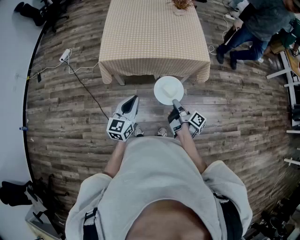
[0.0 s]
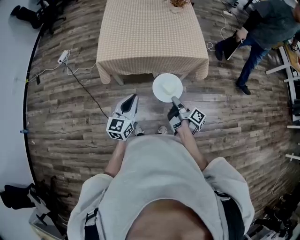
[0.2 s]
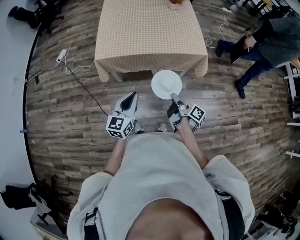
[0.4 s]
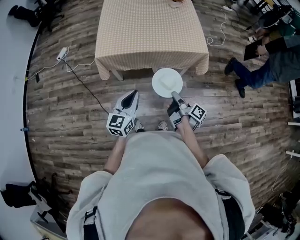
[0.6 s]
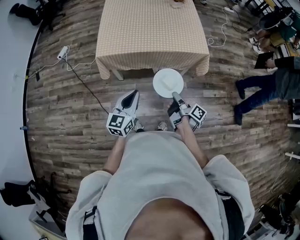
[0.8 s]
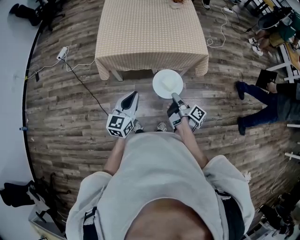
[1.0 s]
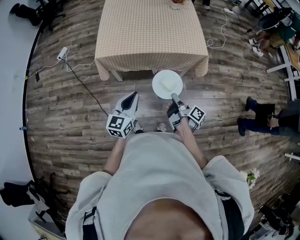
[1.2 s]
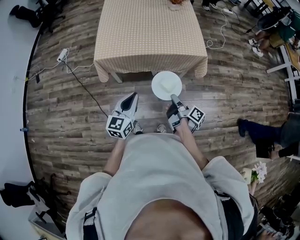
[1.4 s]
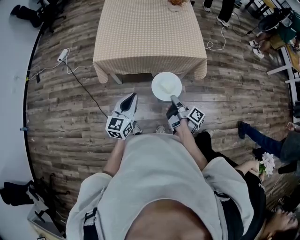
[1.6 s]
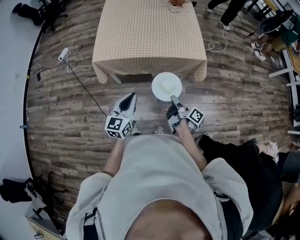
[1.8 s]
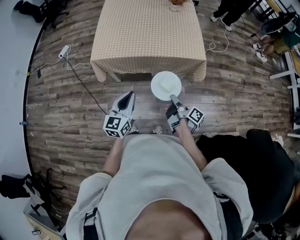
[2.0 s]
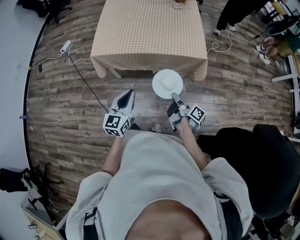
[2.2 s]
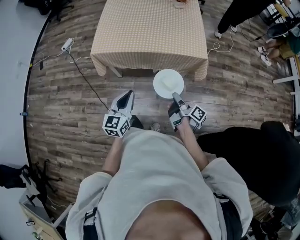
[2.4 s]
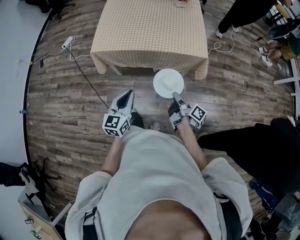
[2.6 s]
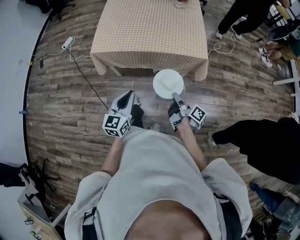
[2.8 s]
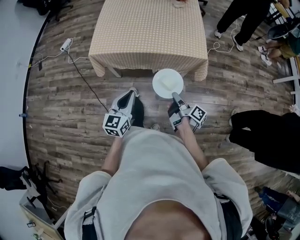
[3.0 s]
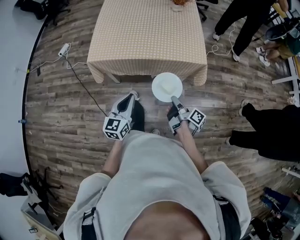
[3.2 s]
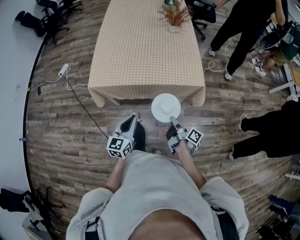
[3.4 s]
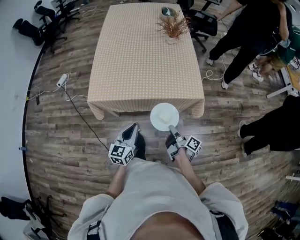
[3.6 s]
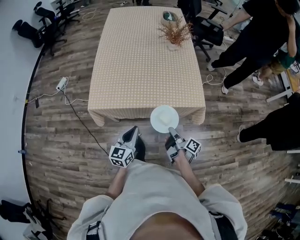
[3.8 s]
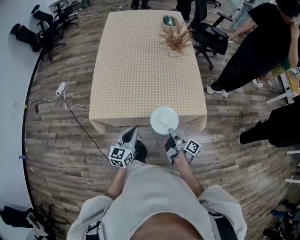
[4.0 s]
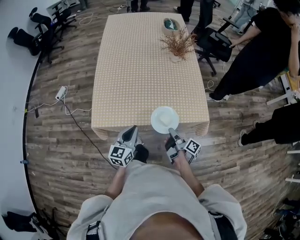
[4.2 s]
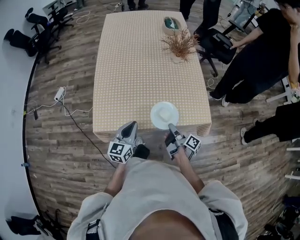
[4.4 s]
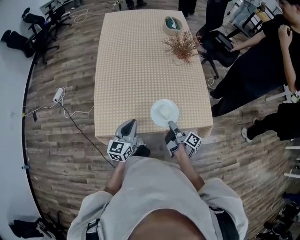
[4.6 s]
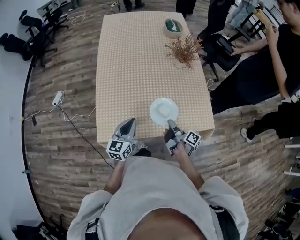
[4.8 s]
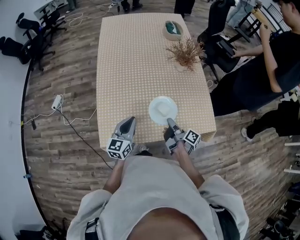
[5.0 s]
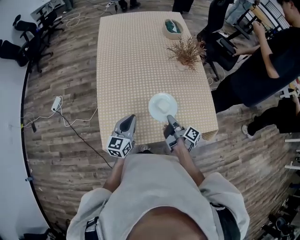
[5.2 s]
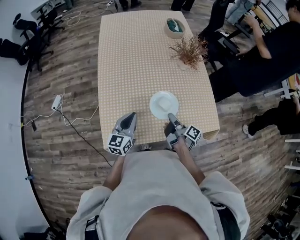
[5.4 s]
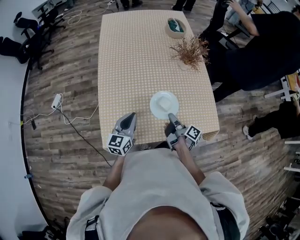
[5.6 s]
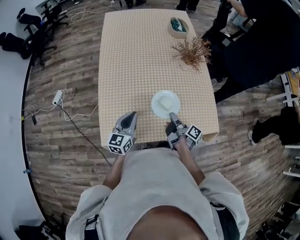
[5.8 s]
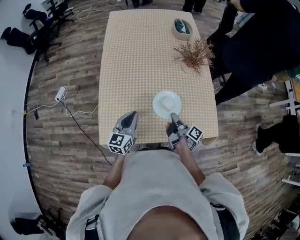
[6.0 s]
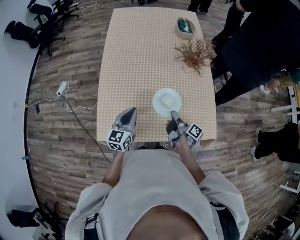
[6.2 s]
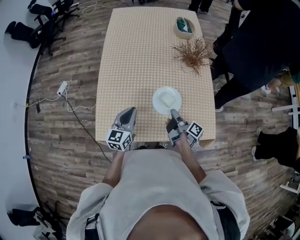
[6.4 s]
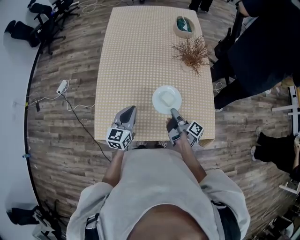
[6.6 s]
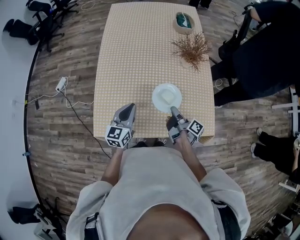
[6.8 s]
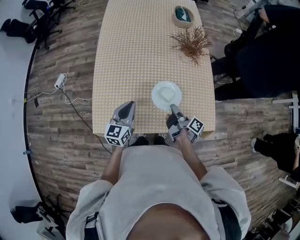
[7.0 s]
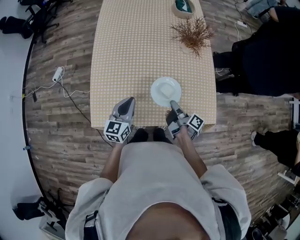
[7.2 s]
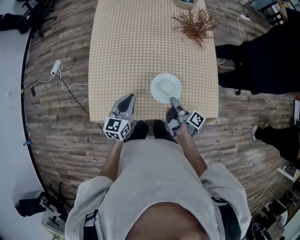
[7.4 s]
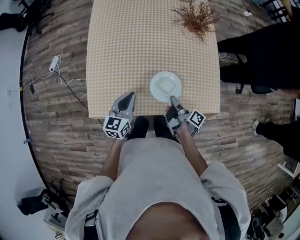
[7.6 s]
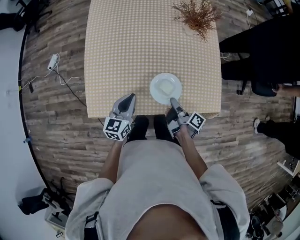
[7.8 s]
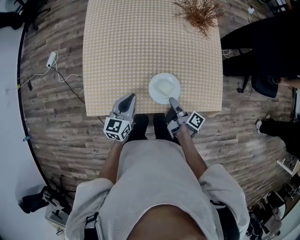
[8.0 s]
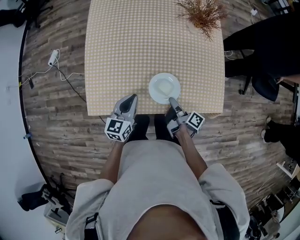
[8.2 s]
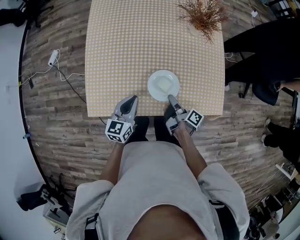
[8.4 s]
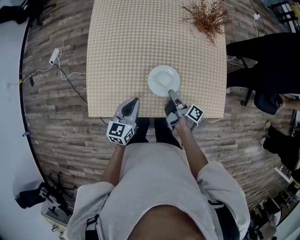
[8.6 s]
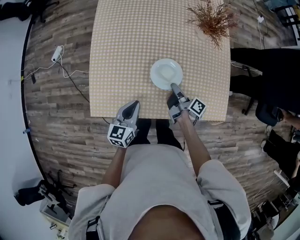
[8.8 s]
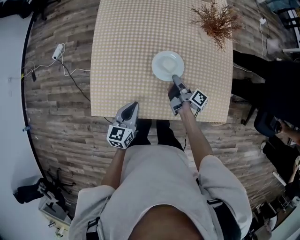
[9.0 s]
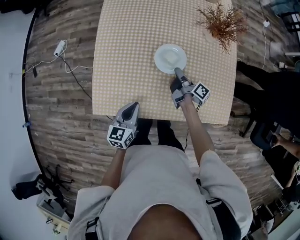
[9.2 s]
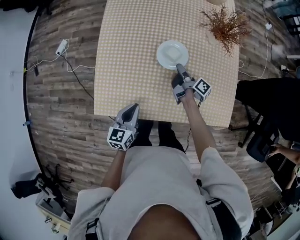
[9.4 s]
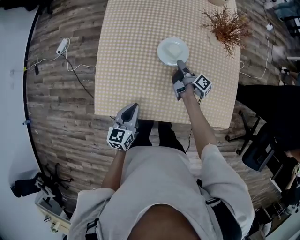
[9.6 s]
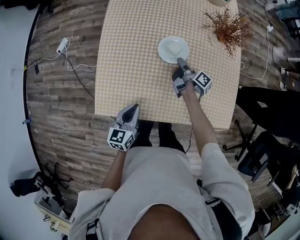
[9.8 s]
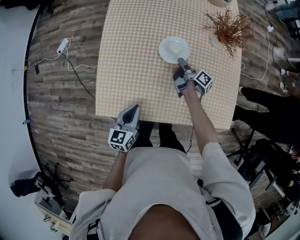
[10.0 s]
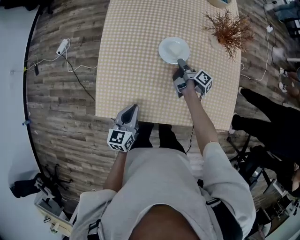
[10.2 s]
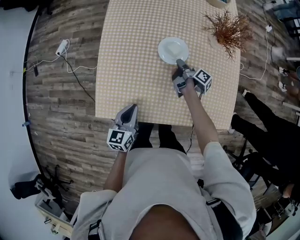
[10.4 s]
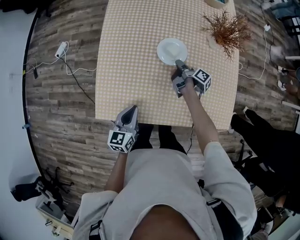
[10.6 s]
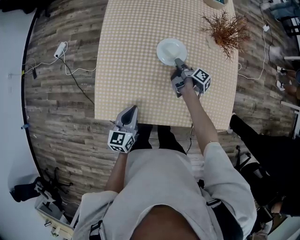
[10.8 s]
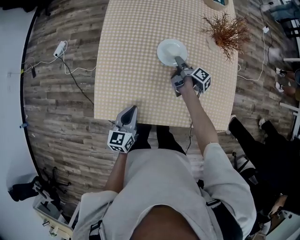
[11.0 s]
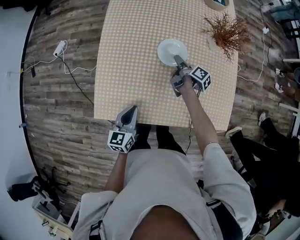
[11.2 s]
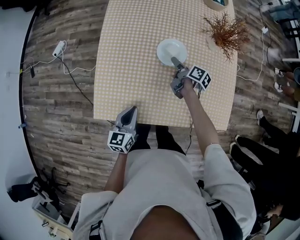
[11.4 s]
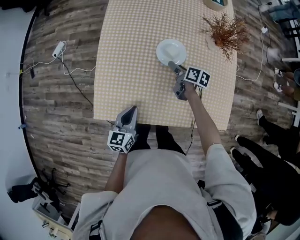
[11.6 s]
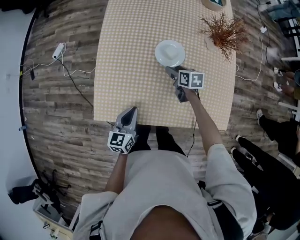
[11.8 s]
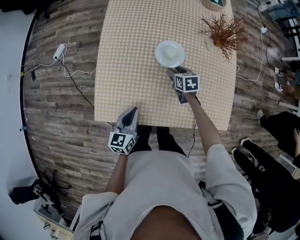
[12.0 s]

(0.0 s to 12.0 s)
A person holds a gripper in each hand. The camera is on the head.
3.0 s - 4.4 s: The left gripper shifts by some 30 cm.
4.4 s - 6.0 s: The left gripper ends up about 15 cm from where it was.
6.0 s - 7.6 s: The left gripper goes roughly 5 cm downward.
7.6 s - 9.0 s: The left gripper ends up some 5 cm from where it was.

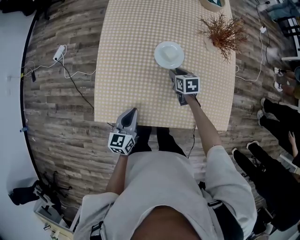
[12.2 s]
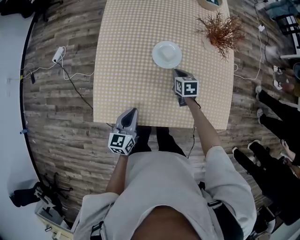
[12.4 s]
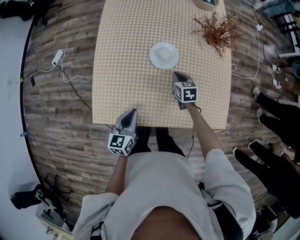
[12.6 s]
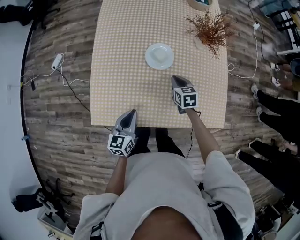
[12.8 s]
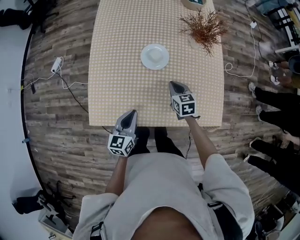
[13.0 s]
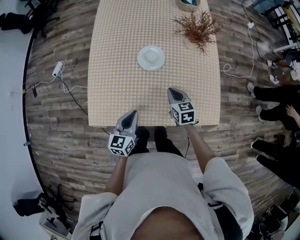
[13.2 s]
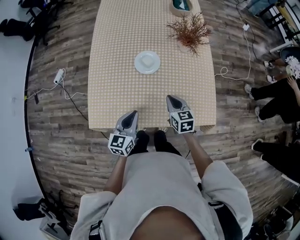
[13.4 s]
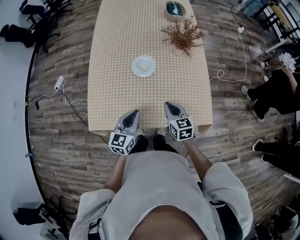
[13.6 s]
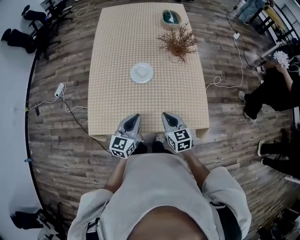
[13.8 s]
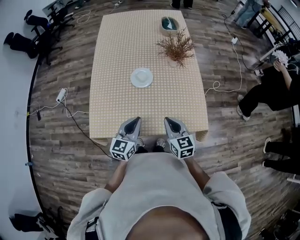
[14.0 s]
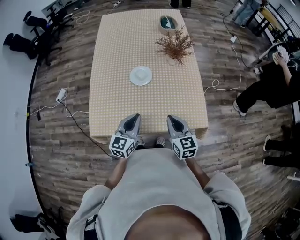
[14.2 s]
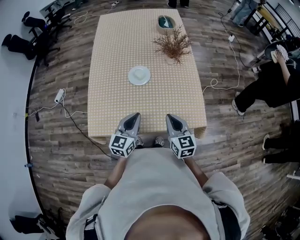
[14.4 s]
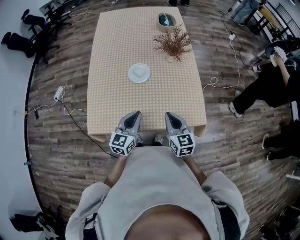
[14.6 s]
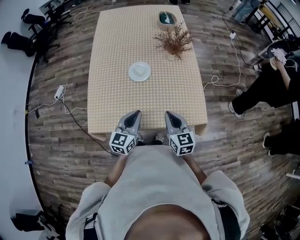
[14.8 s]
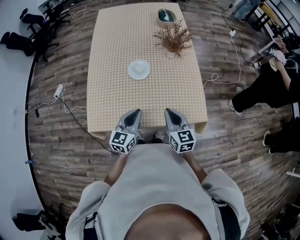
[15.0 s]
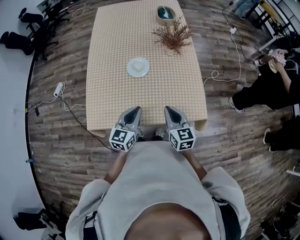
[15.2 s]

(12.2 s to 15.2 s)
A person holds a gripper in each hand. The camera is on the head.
12.2 s - 13.8 s: The left gripper changes place by some 15 cm.

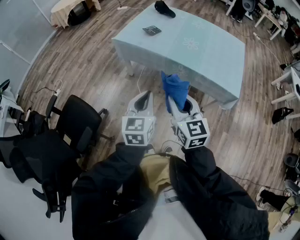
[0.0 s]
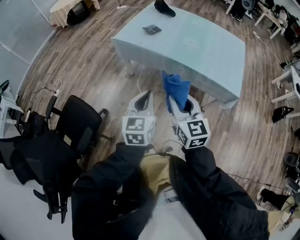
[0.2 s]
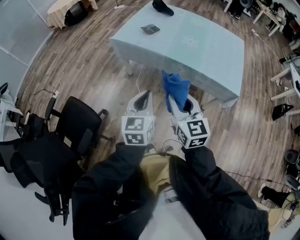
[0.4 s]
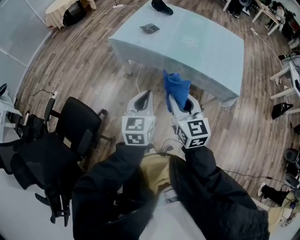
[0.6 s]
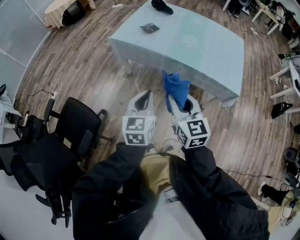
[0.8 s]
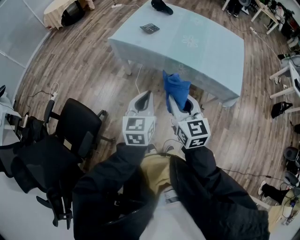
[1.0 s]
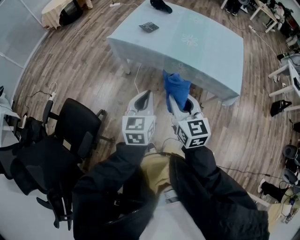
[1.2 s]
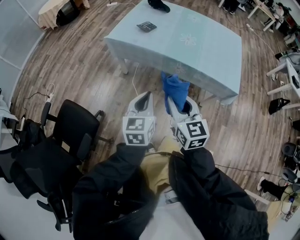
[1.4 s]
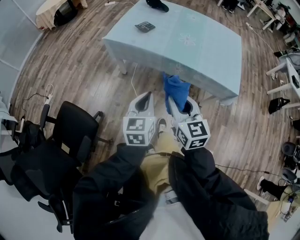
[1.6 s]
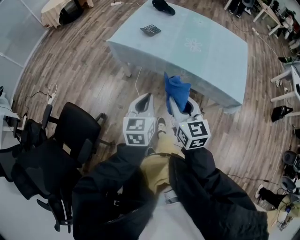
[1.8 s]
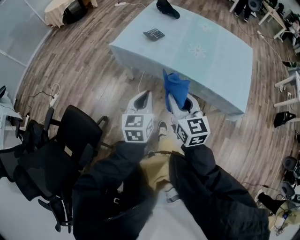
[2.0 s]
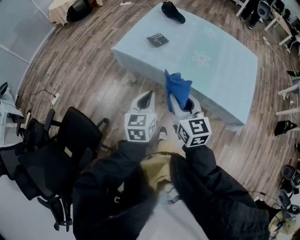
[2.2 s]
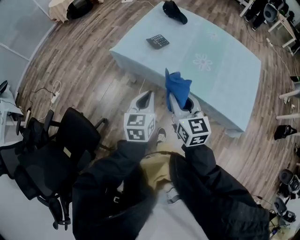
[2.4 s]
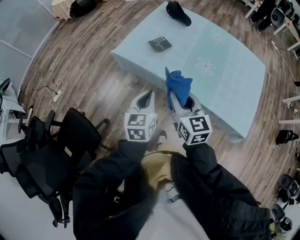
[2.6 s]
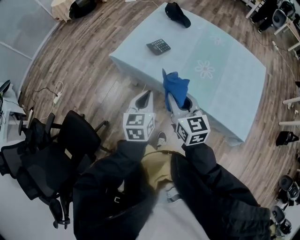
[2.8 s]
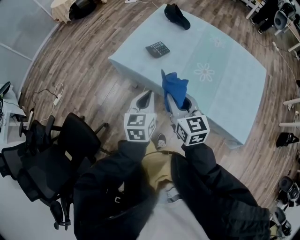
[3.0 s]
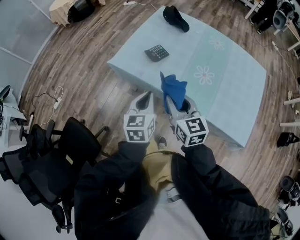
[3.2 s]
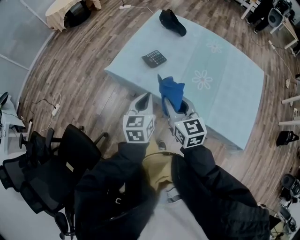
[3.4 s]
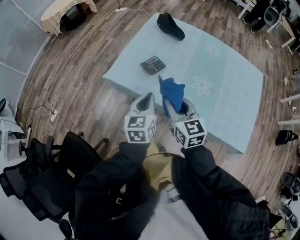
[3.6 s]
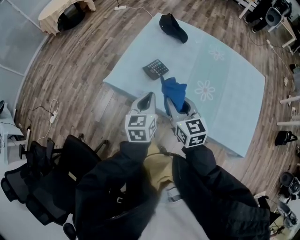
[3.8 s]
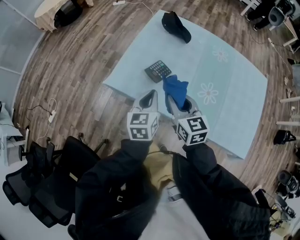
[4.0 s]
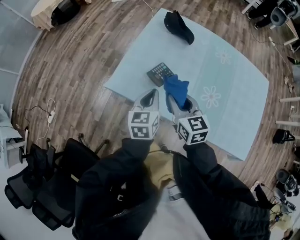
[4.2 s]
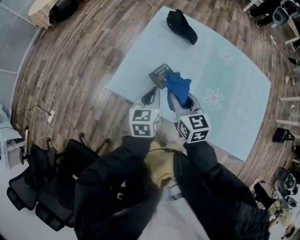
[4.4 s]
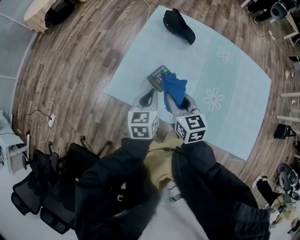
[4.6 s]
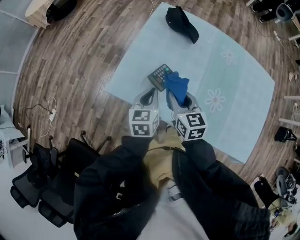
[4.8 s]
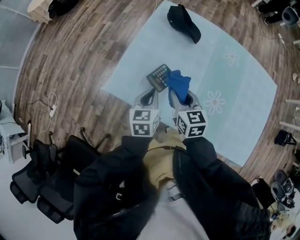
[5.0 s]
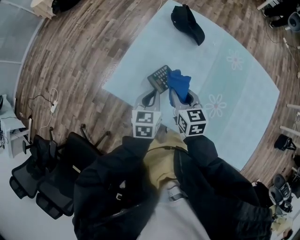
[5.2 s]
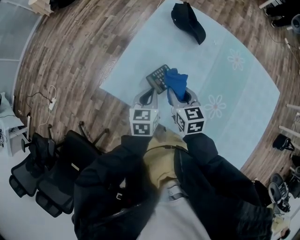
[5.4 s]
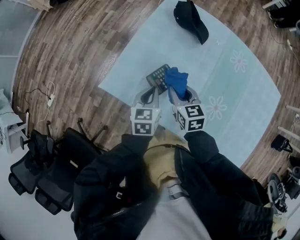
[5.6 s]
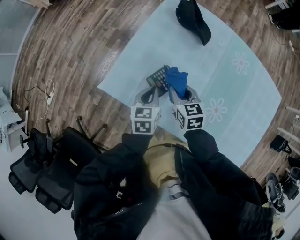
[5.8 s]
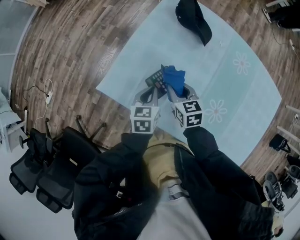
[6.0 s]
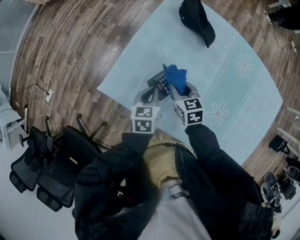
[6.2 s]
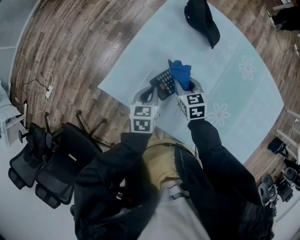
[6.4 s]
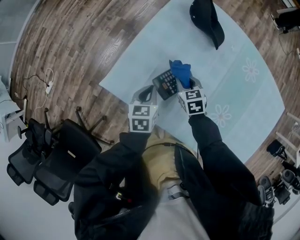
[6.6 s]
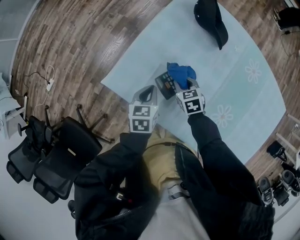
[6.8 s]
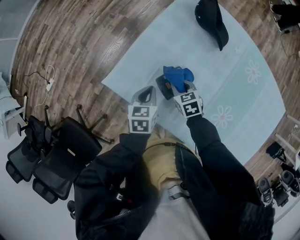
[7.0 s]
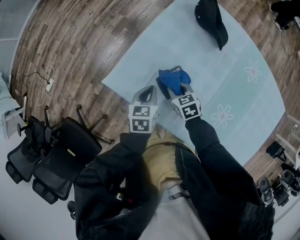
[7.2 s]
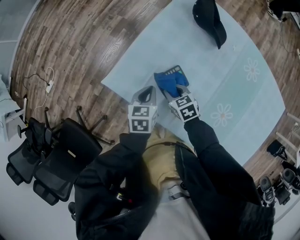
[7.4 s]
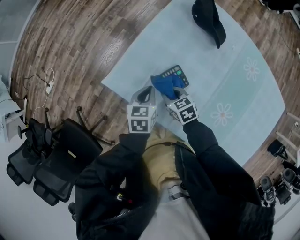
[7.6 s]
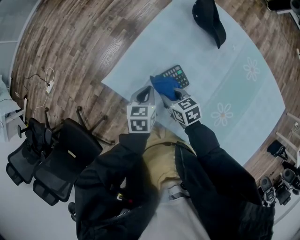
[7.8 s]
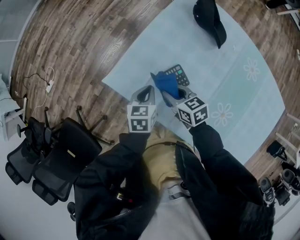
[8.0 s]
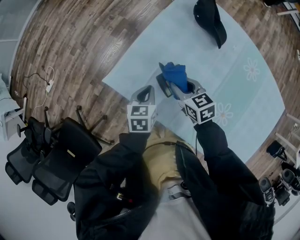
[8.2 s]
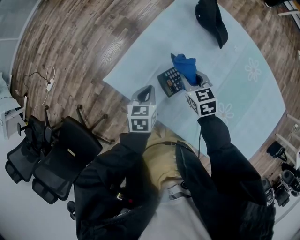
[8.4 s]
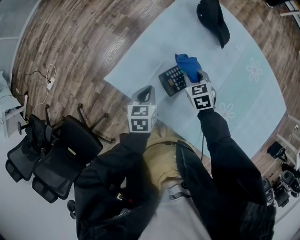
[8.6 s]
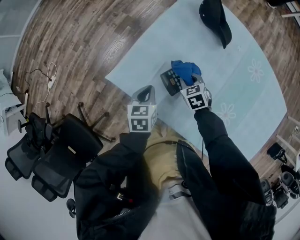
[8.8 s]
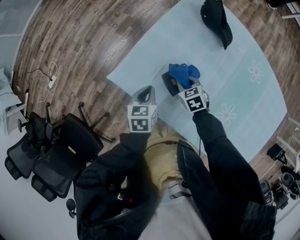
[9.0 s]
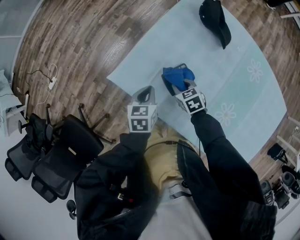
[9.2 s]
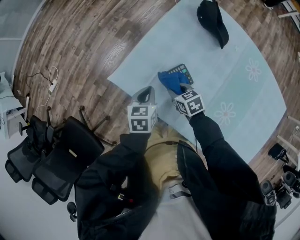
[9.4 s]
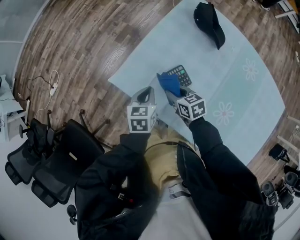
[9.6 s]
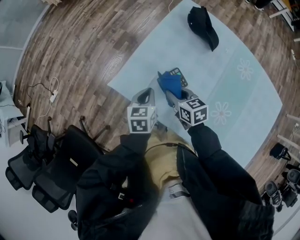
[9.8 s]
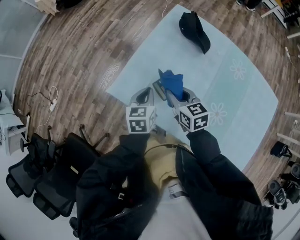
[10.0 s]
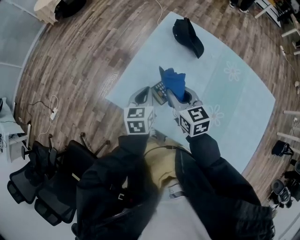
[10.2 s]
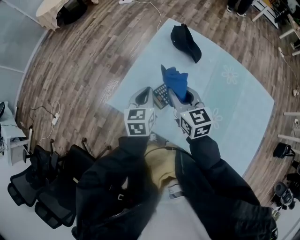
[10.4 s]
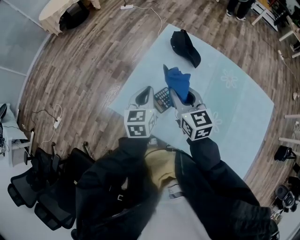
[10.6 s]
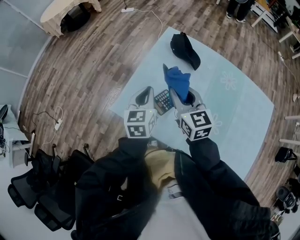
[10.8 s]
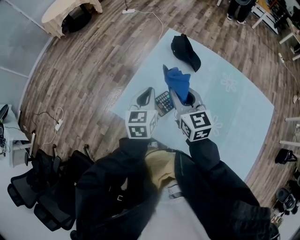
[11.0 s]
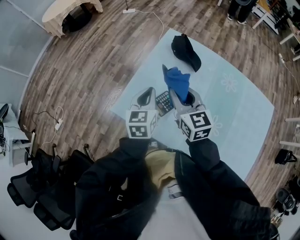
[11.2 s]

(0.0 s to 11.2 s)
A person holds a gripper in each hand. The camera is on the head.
0.0 s - 1.6 s: The two grippers go approximately 5 cm forward.
1.6 s - 3.2 s: The grippers both shift forward by about 30 cm.
3.2 s - 4.8 s: Both grippers travel together forward, about 25 cm.
4.8 s - 6.4 s: The right gripper goes about 20 cm downward and forward, and rotates some 20 degrees. The left gripper travels downward and forward by roughly 15 cm.
6.4 s - 8.0 s: The right gripper heads to the left, covering approximately 10 cm, and turns by about 30 degrees.
8.0 s - 9.6 s: The right gripper reaches about 10 cm downward, then returns.
9.6 s - 11.2 s: Both grippers travel together upward, some 20 cm. The left gripper turns by some 20 degrees. Meanwhile the right gripper swivels some 40 degrees.
